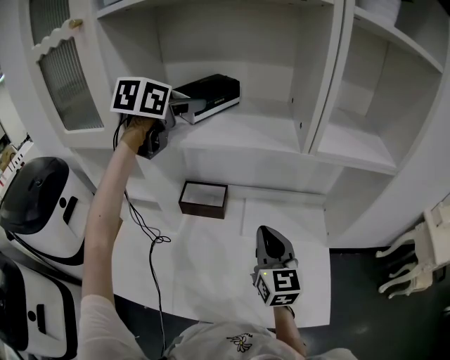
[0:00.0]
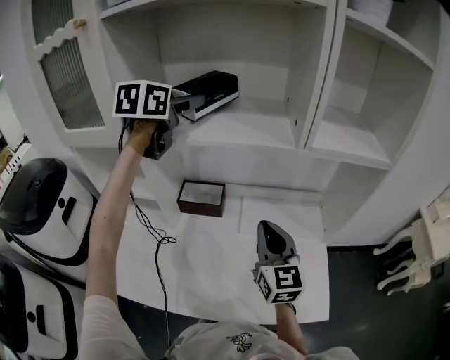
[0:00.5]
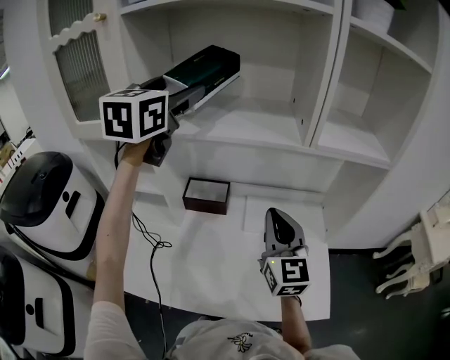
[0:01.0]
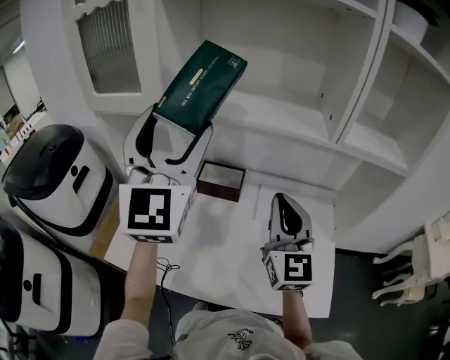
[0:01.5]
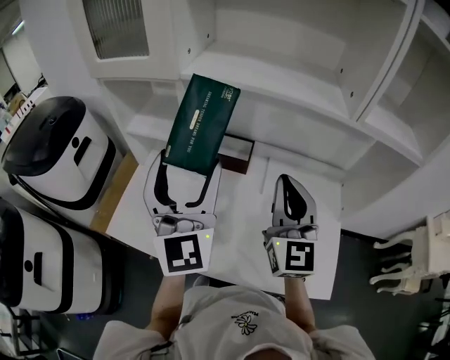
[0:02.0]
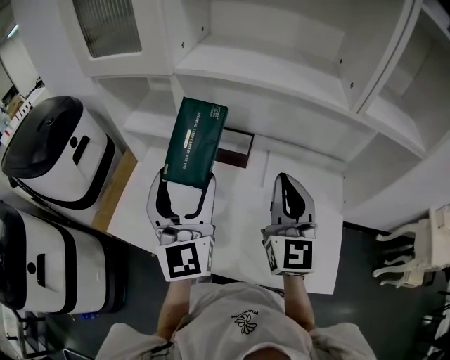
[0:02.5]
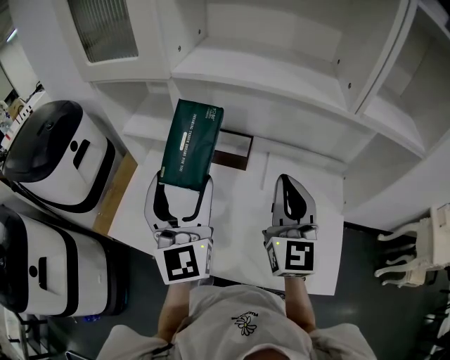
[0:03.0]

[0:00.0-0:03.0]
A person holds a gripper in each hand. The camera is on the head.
0.0 to 1.5 s: The right gripper travels upward by roughly 10 cm, while the left gripper goes some 25 cm backward, and tilts its fingers roughly 40 degrees upward.
1.5 to 3.0 s: The left gripper shifts some 15 cm downward.

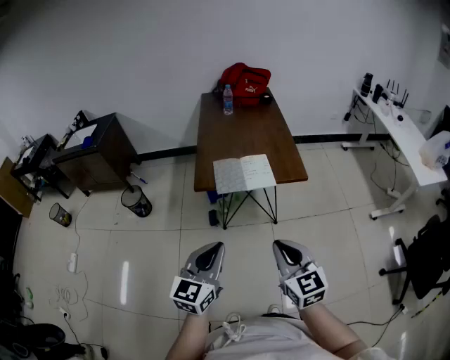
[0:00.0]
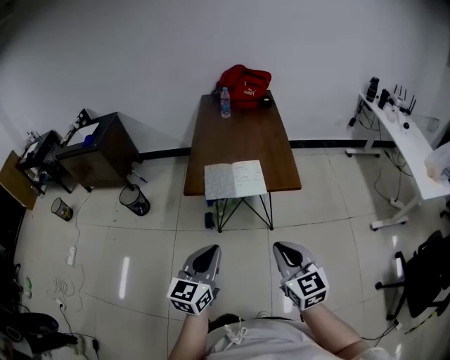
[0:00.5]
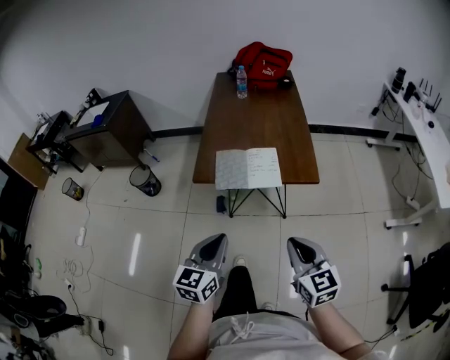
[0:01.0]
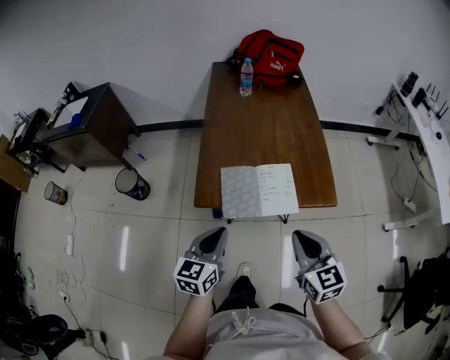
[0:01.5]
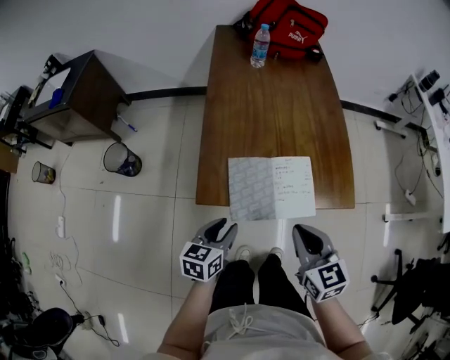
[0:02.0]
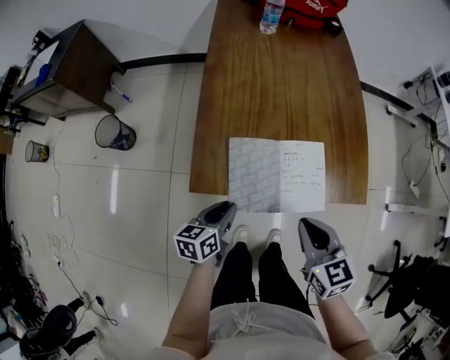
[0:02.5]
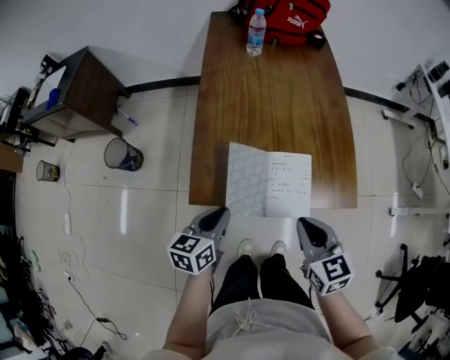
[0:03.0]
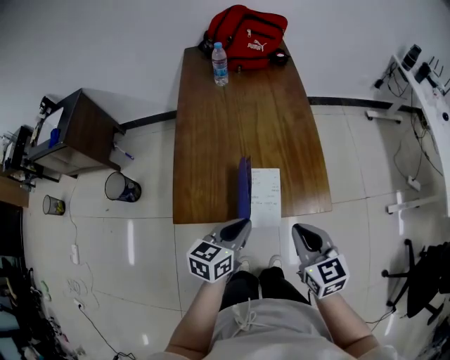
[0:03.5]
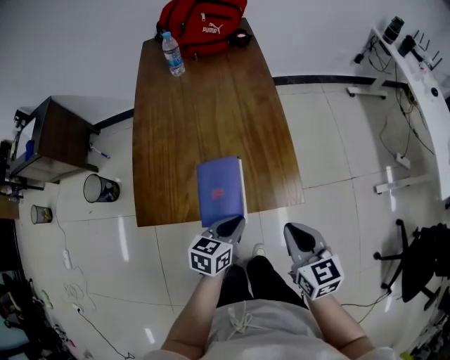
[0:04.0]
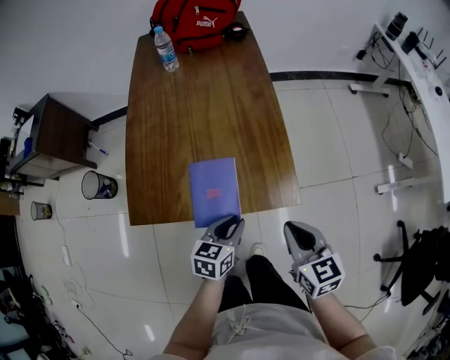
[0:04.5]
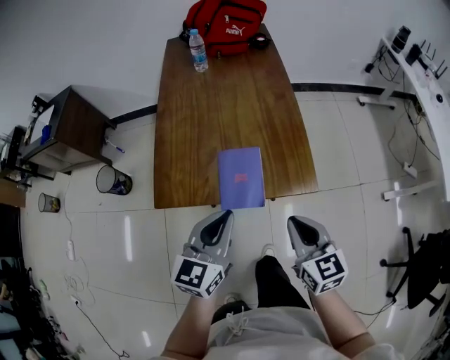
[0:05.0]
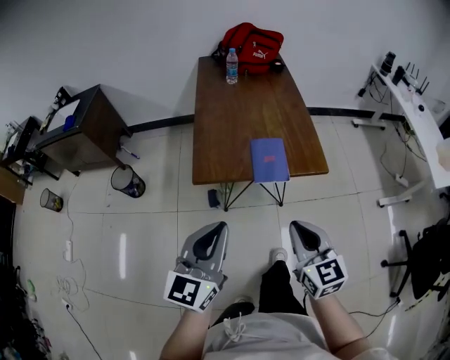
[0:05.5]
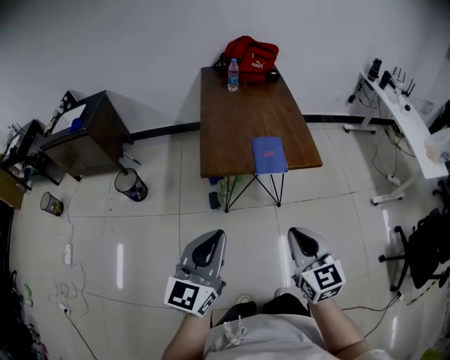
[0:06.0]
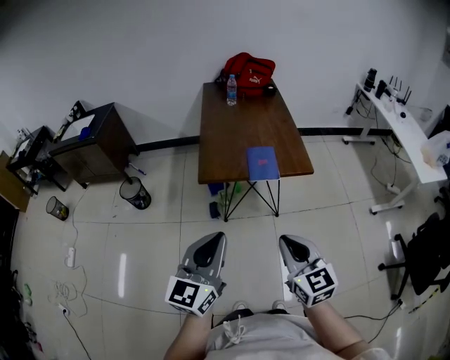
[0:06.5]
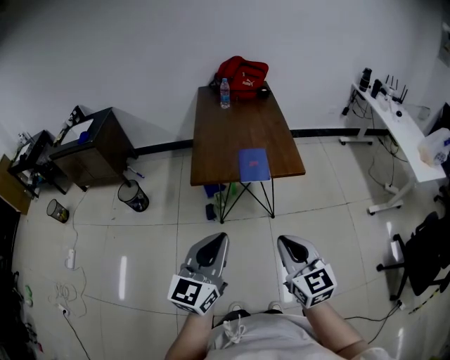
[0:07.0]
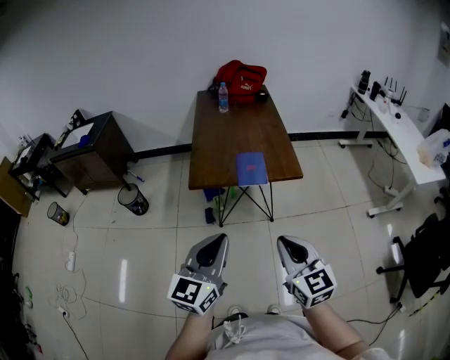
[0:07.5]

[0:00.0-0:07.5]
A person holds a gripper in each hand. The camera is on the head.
0.0 to 2.0 s: The right gripper heads forward, covering approximately 35 cm, while the left gripper shifts about 40 cm forward and downward, rotates approximately 40 degrees, and opens.
2.0 to 4.0 s: Both grippers move to the right, roughly 25 cm. The left gripper closes up.
4.0 to 5.5 s: The right gripper travels backward, to the left and upward by roughly 30 cm, while the left gripper travels backward, upward and to the left by roughly 40 cm, and angles its fingers upward, by some 30 degrees.
5.5 to 7.5 s: The left gripper heads backward and to the right, covering about 15 cm. Meanwhile the right gripper heads backward and upward, covering roughly 15 cm.

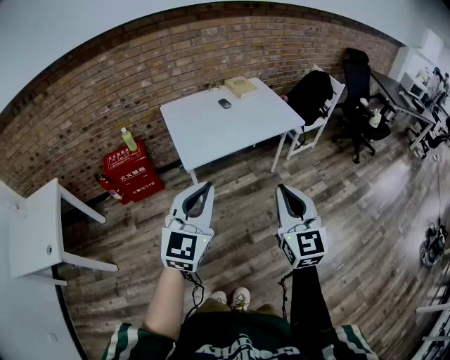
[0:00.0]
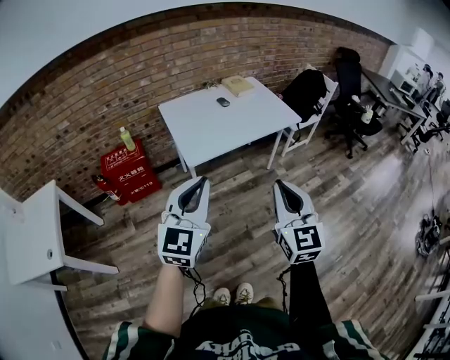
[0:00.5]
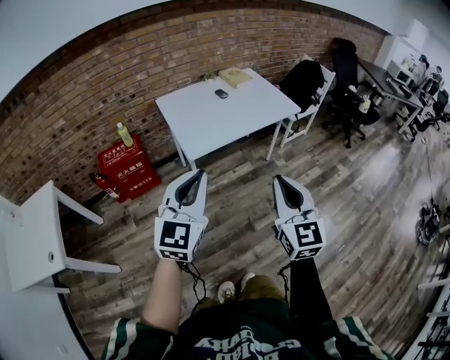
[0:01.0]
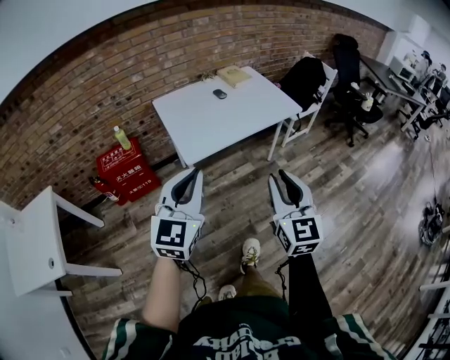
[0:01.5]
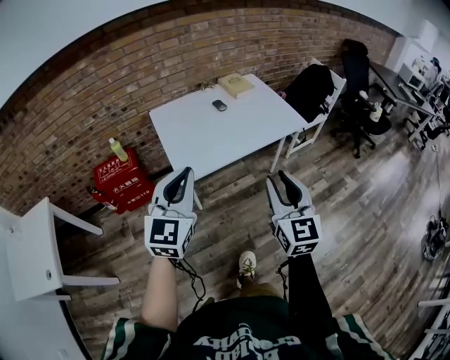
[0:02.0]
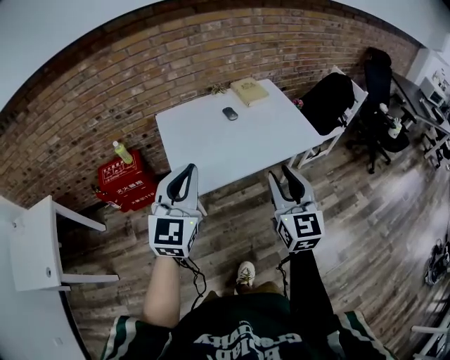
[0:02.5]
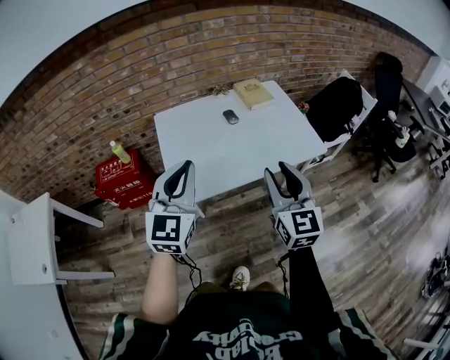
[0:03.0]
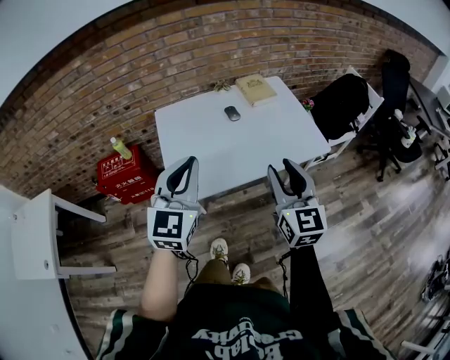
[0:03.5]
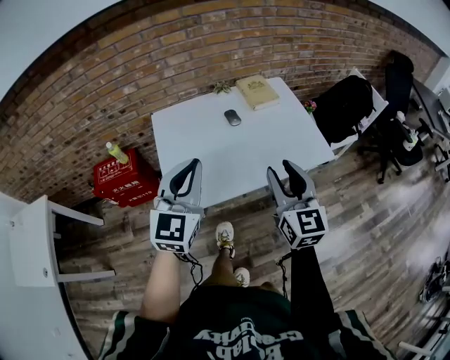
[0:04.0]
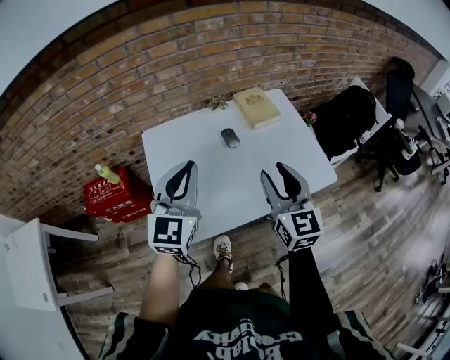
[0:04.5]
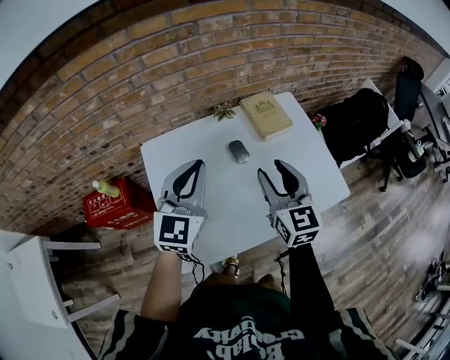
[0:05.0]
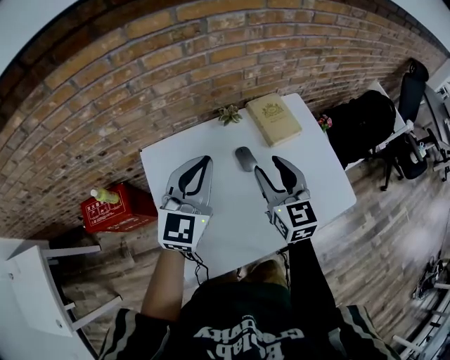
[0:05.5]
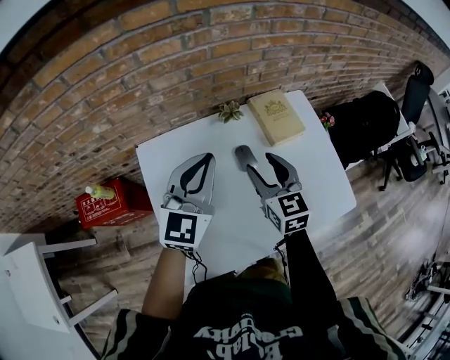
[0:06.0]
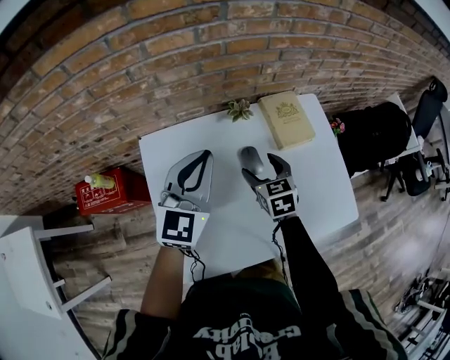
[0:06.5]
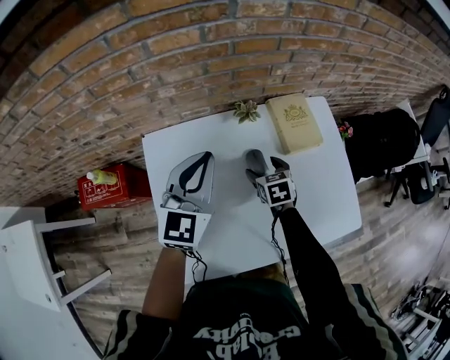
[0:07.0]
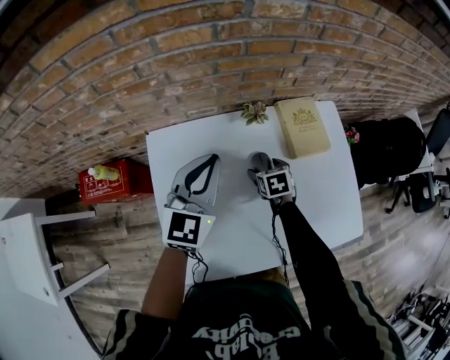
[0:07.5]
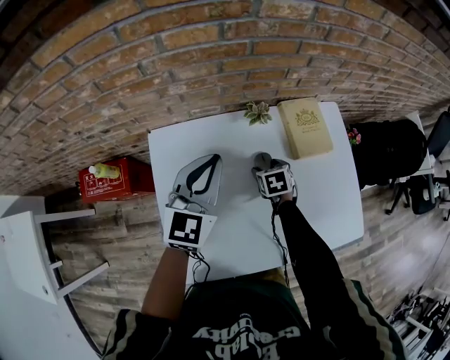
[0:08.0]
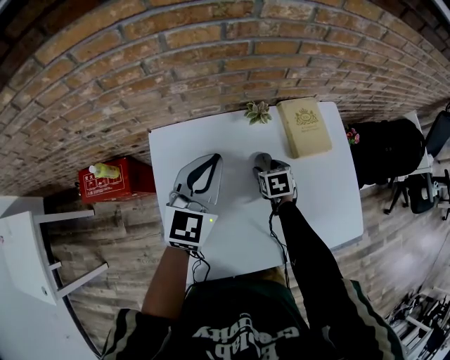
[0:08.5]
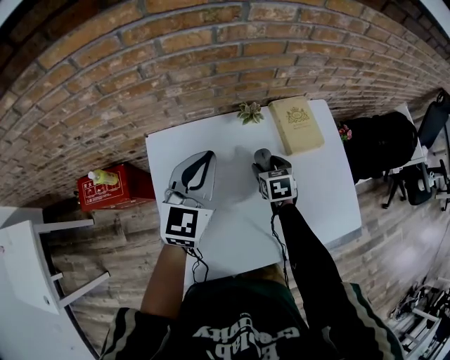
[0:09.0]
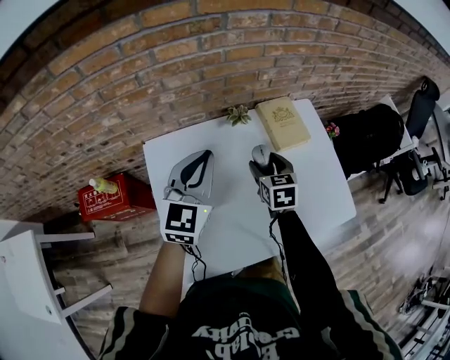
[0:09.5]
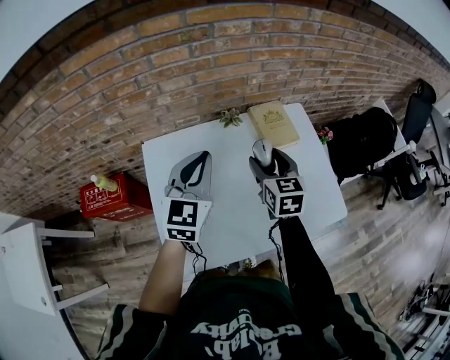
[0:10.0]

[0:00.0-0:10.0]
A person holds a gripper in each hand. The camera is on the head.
0.0 to 2.0 s: The right gripper is displaced forward by roughly 15 cm, while the left gripper goes about 15 cm forward and to the left.
2.0 to 4.0 s: Both grippers travel together forward, approximately 25 cm.
4.0 to 6.0 s: Both grippers travel together forward, about 35 cm.
6.0 to 8.0 s: The left gripper goes about 10 cm forward and downward, while the right gripper goes some 25 cm downward, and tips its fingers downward by approximately 40 degrees.
8.0 to 10.0 s: The right gripper moves upward, approximately 25 cm, and points its fingers about 40 degrees further upward; the left gripper heads backward and upward, covering some 10 cm.

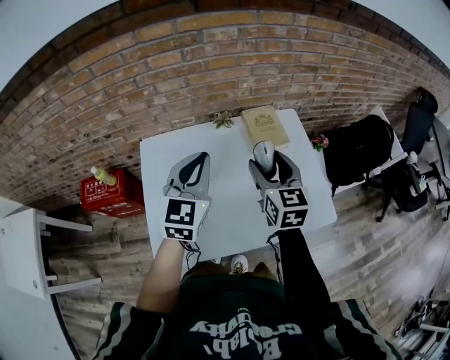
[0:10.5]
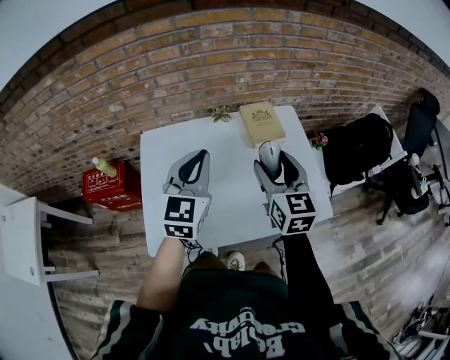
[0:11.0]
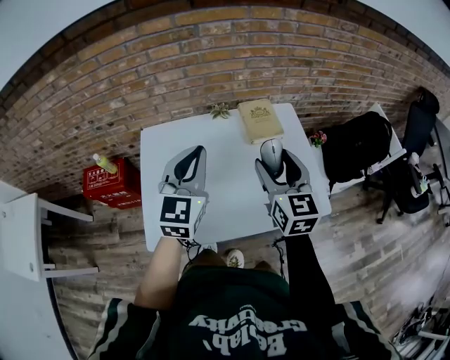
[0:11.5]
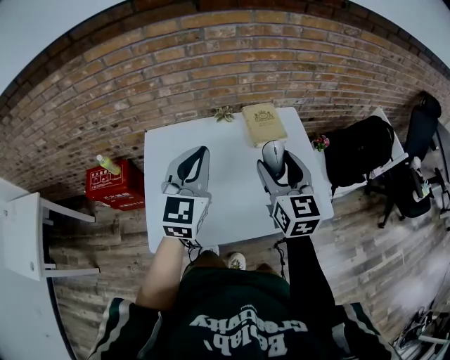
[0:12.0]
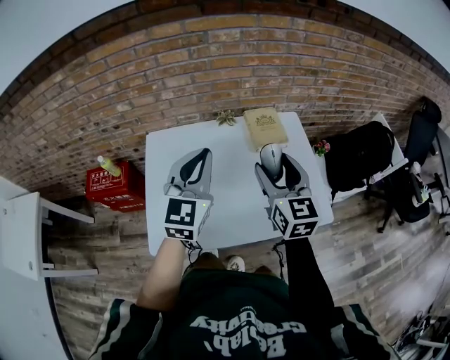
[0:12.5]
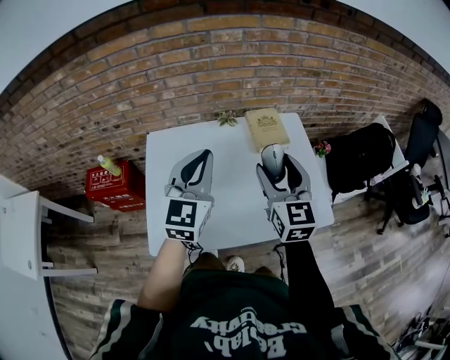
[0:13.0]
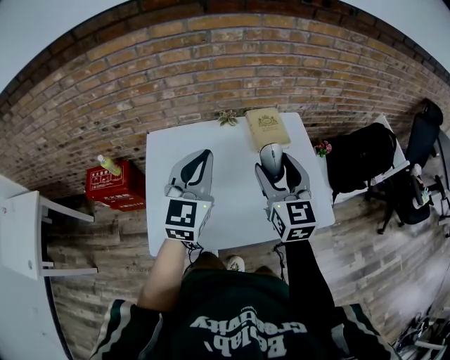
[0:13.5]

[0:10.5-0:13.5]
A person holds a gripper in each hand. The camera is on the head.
10.5 to 12.0 s: The grippers both shift backward by some 5 cm.
12.0 to 13.5 s: The grippers move only a little.

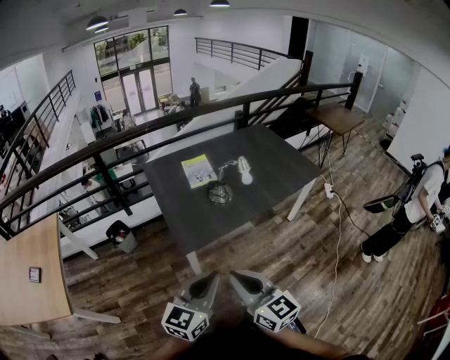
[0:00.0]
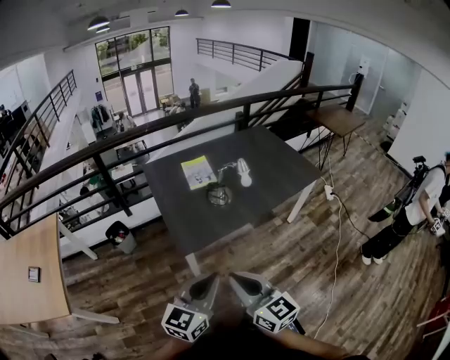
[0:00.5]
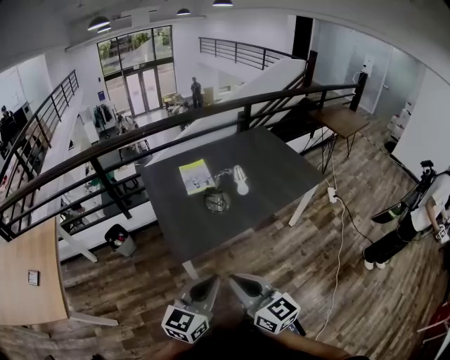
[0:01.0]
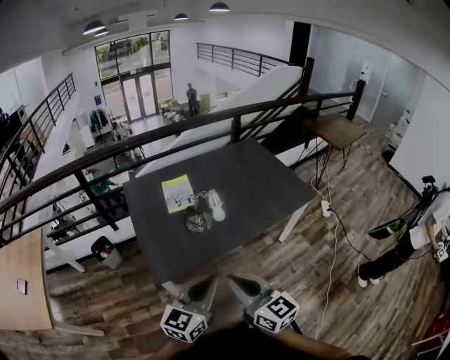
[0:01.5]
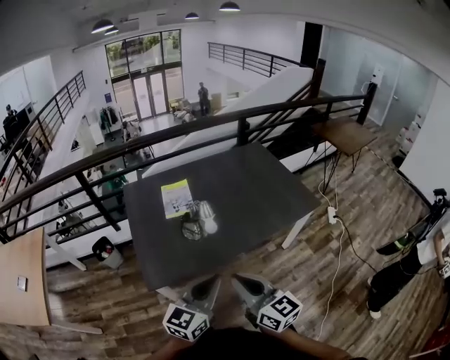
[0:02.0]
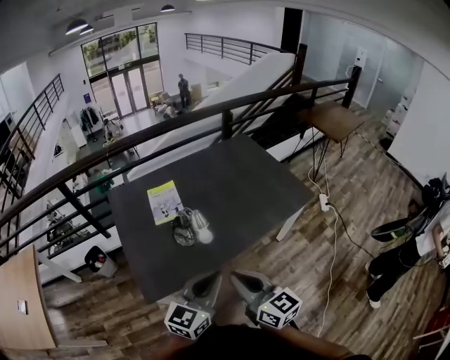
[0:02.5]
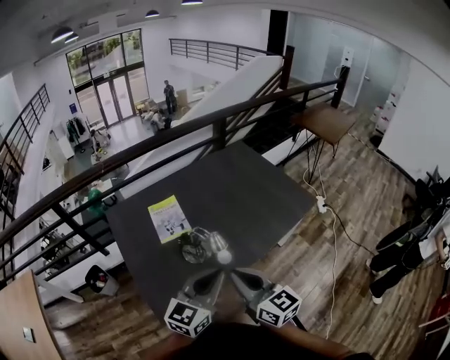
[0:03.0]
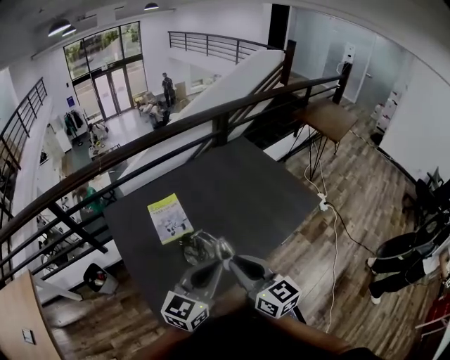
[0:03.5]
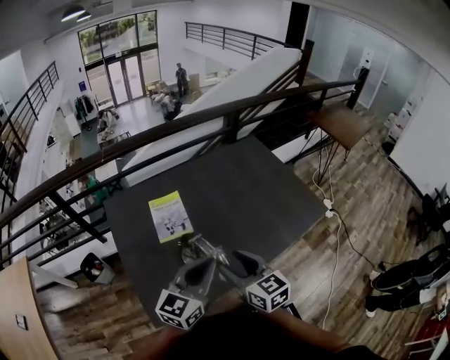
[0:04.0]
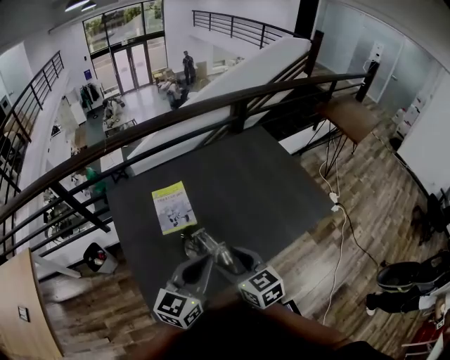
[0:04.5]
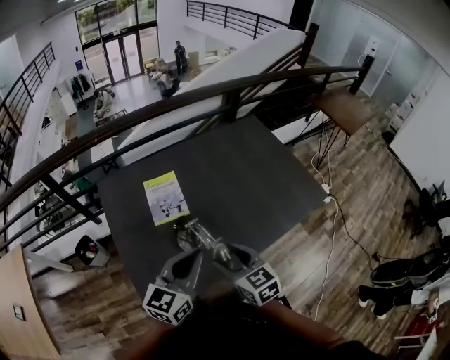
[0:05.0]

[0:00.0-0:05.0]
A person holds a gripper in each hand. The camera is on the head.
0.0 to 2.5 s: Both grippers move forward and to the right, some 30 cm.
2.5 to 5.0 s: The right gripper heads forward, to the left and downward, covering roughly 20 cm, rotates roughly 20 degrees, and opens its fingers. The left gripper shifts about 20 cm forward and to the left.
